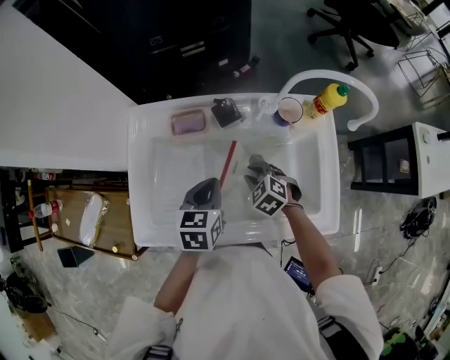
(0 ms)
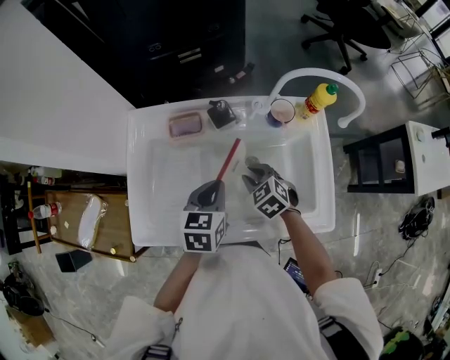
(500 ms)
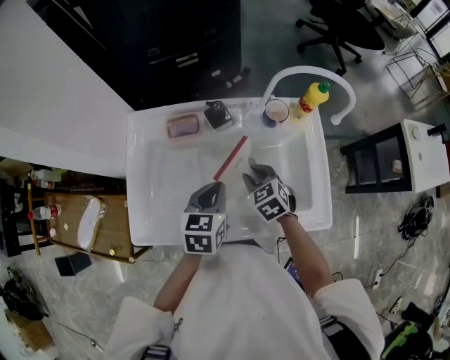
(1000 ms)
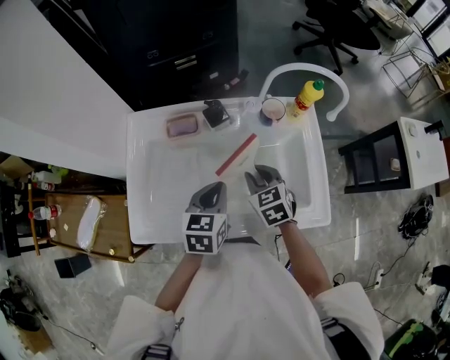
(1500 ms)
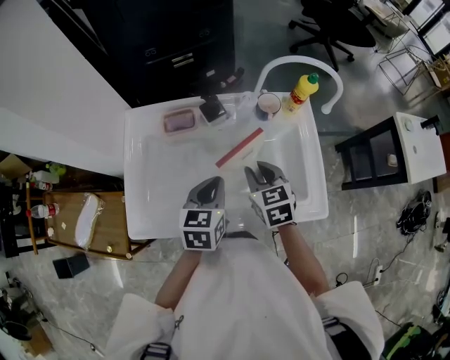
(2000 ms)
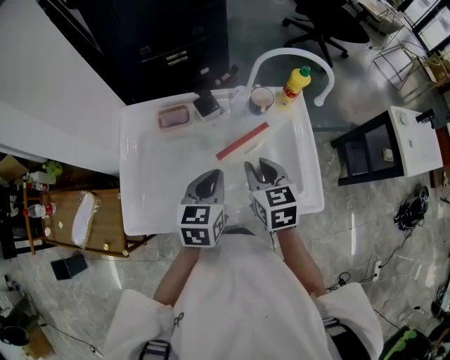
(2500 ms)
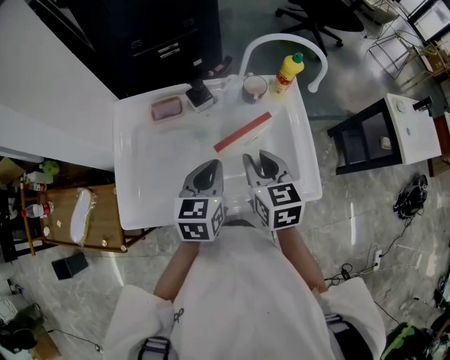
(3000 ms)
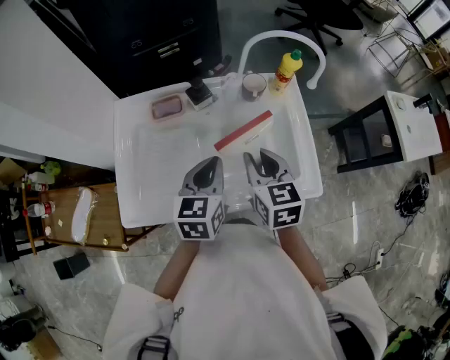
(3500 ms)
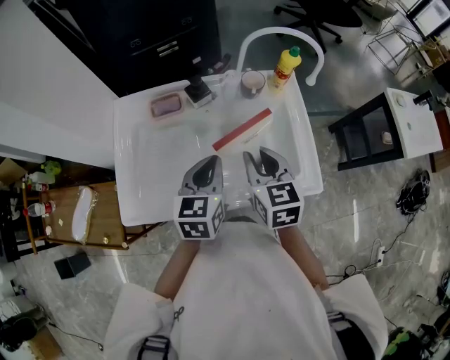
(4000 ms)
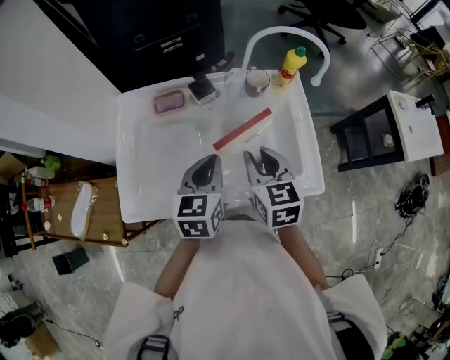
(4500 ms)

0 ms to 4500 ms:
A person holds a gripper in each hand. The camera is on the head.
0 ms to 2000 ms: The left gripper shifts by approximately 5 cm. Meanwhile the right gripper moves upward, some 15 cm, and changes its angle by approximately 40 degrees.
2000 ms to 4500 ms: The right gripper is displaced upward by approximately 5 cm.

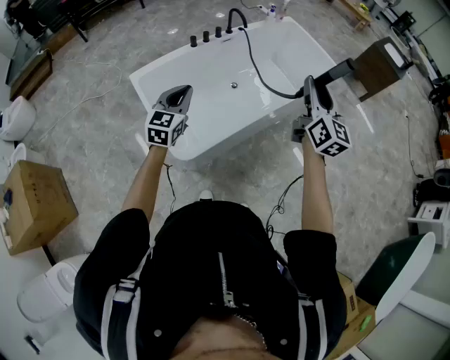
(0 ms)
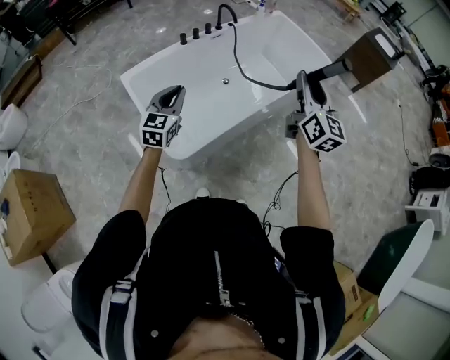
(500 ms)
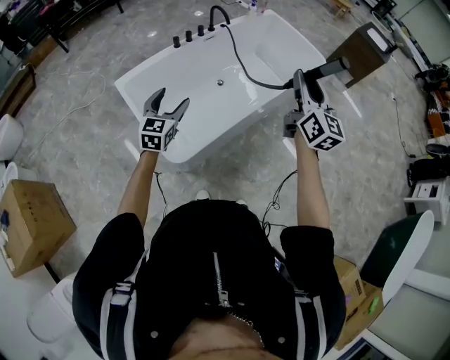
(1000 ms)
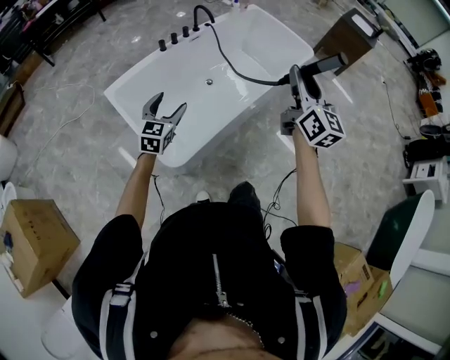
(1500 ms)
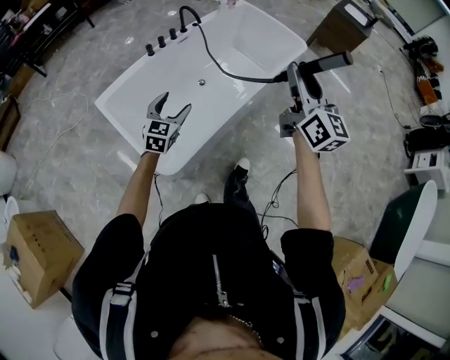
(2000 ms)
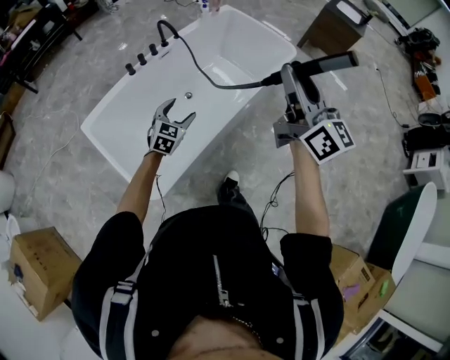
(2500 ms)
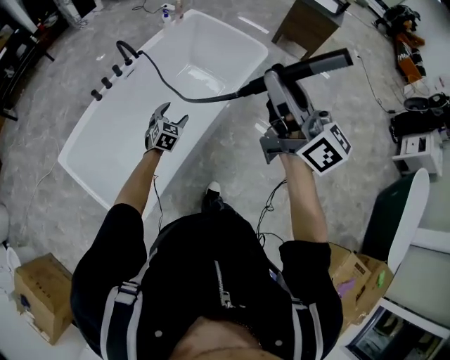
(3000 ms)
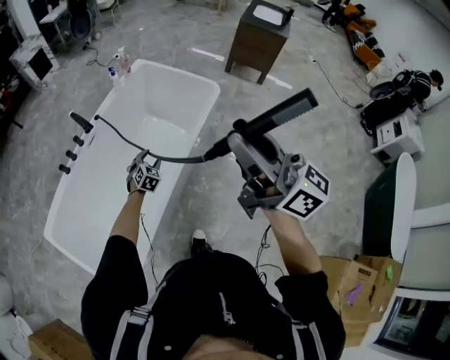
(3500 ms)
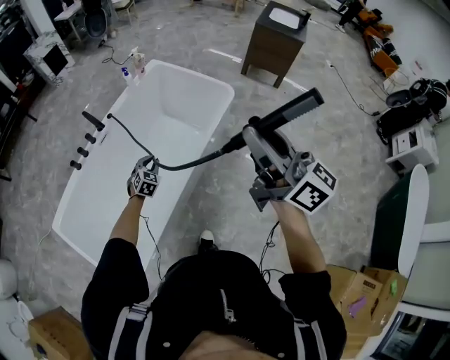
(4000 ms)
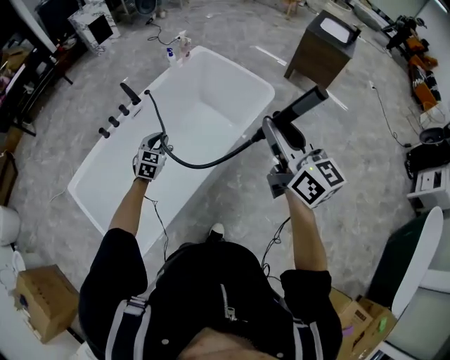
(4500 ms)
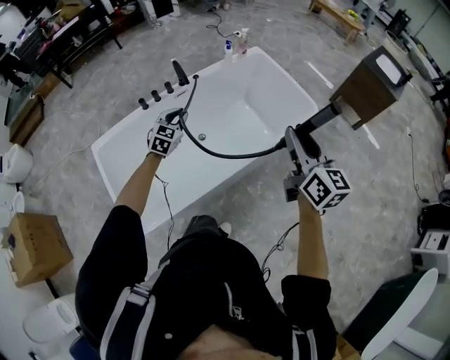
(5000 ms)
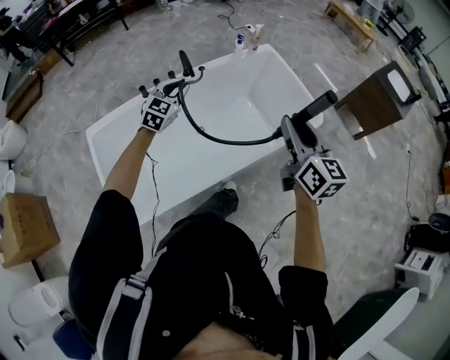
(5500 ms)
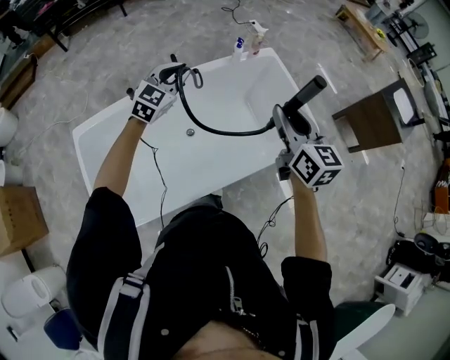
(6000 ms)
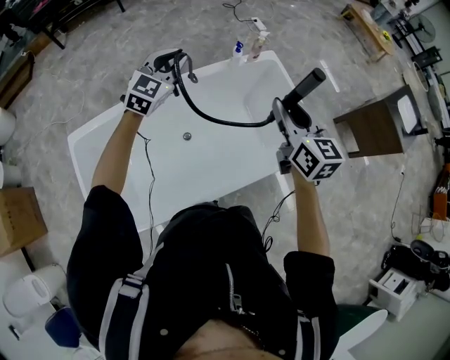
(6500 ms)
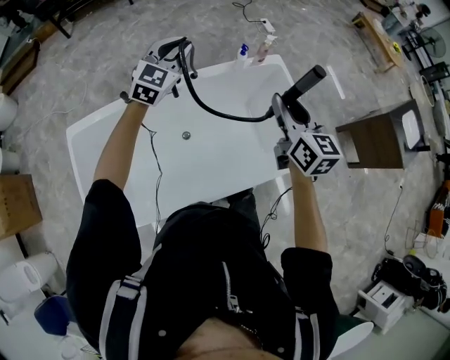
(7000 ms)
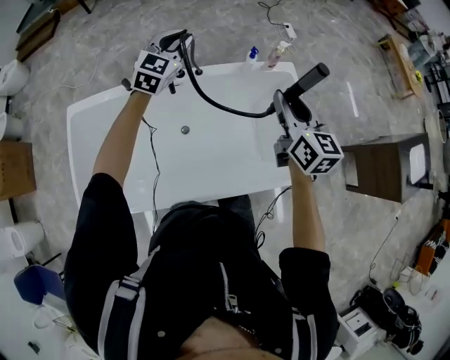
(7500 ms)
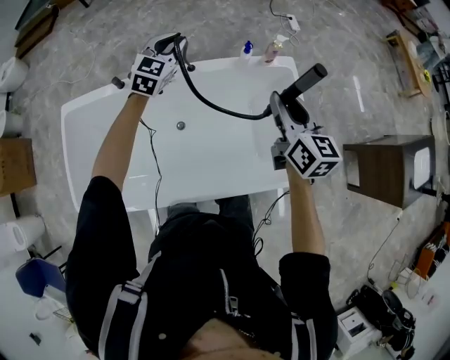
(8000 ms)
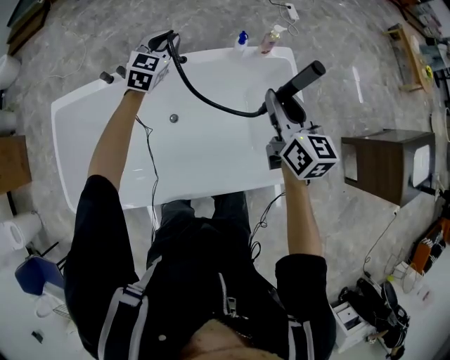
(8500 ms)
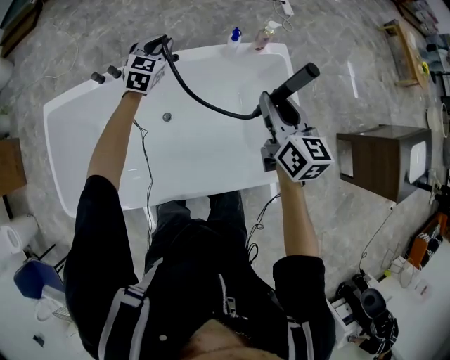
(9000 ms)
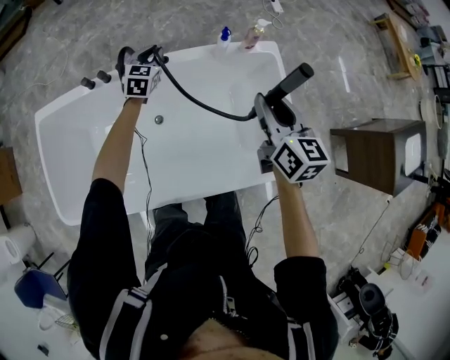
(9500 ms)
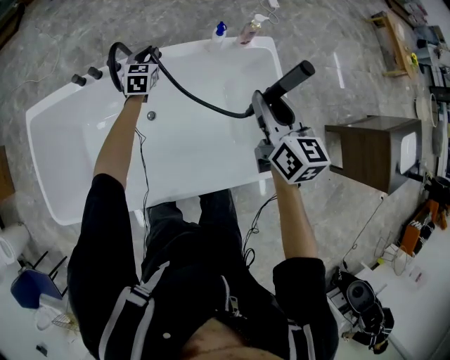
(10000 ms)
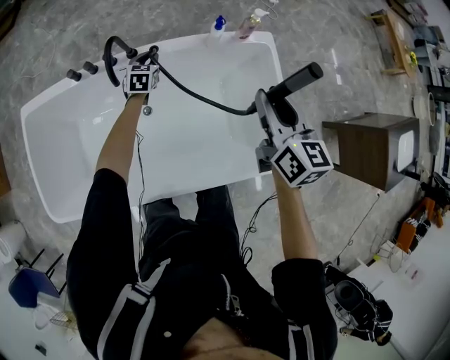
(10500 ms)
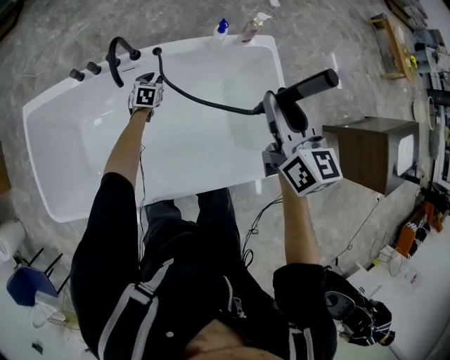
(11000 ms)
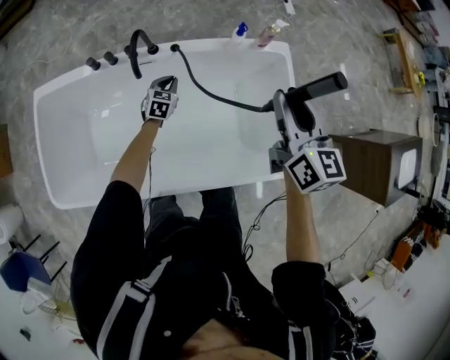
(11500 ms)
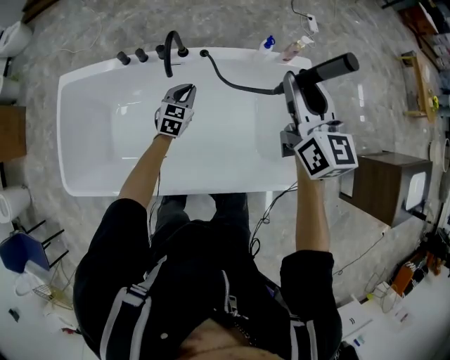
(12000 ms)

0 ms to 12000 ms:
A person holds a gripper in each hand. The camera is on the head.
0 ms to 2000 ms: The left gripper goes some 10 cm downward, forward and to the right, and opens its fingers.
2000 ms to 4000 ms: The right gripper heads to the right and forward, covering roughly 30 cm, and turns by about 20 degrees, while the left gripper shifts about 50 cm forward, to the right and downward, swivels about 30 degrees, and closes its fingers.
4000 ms to 6000 ms: The right gripper shifts some 35 cm forward and downward, and swivels approximately 40 degrees. Meanwhile the left gripper goes some 35 cm upward, forward and to the left, and changes its angle by some 30 degrees.
6000 ms to 8000 ms: The two grippers go roughly 25 cm forward. The left gripper swivels about 20 degrees.
8000 ms to 10000 ms: The right gripper goes roughly 5 cm downward; the left gripper is displaced downward by about 25 cm, and rotates approximately 20 degrees.
10000 ms to 12000 ms: The right gripper goes some 10 cm upward and to the left, while the left gripper is displaced backward by roughly 15 cm.

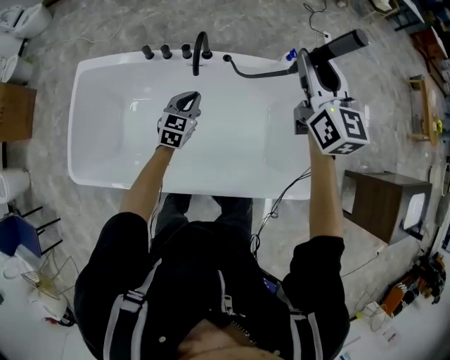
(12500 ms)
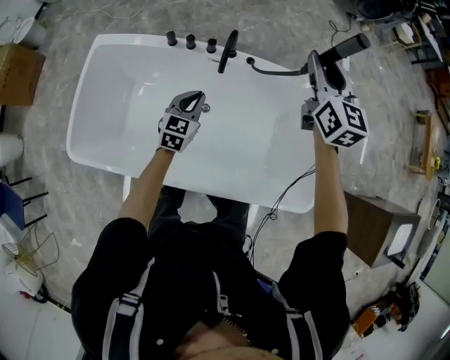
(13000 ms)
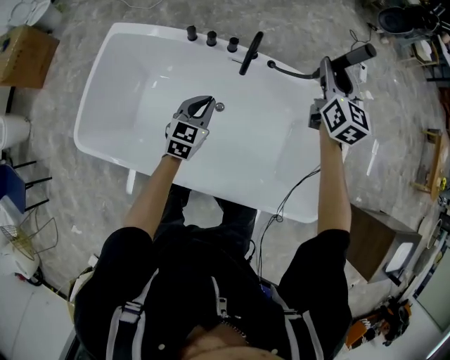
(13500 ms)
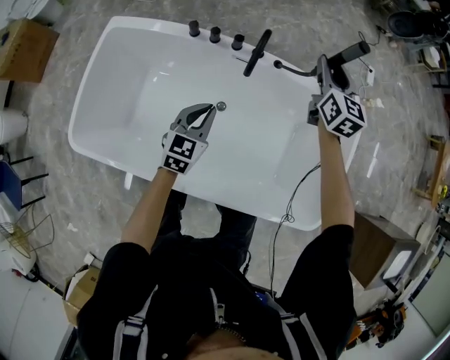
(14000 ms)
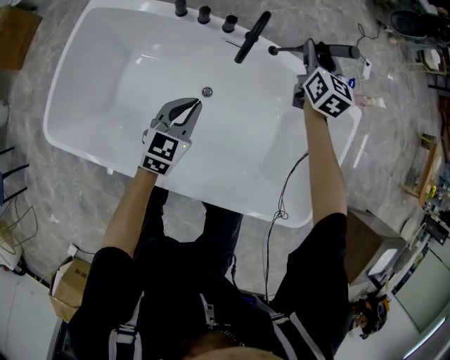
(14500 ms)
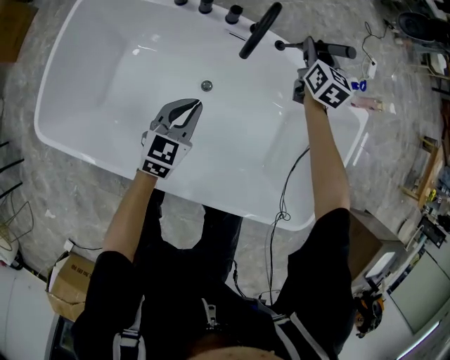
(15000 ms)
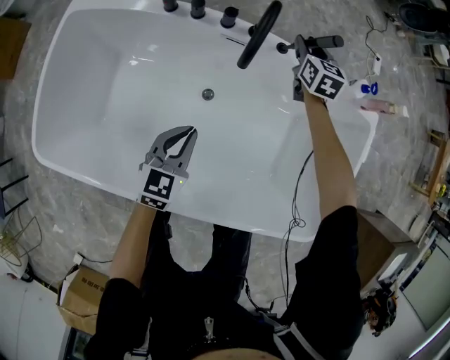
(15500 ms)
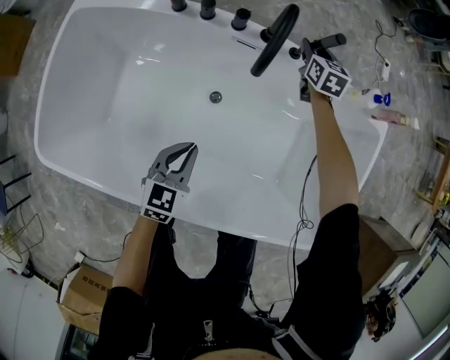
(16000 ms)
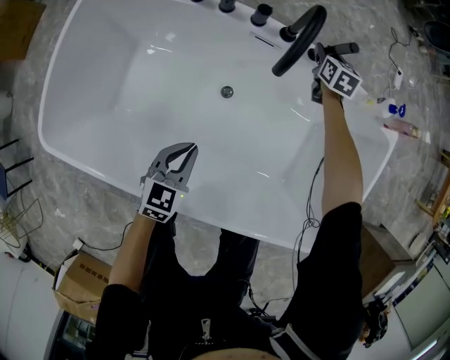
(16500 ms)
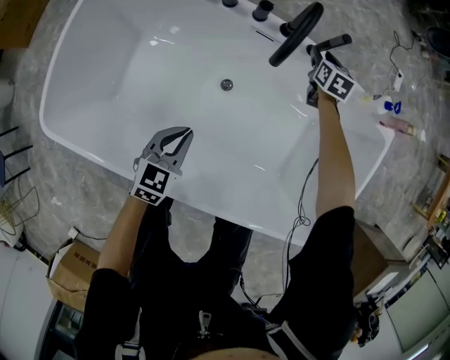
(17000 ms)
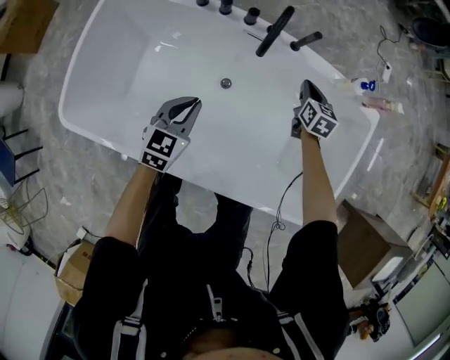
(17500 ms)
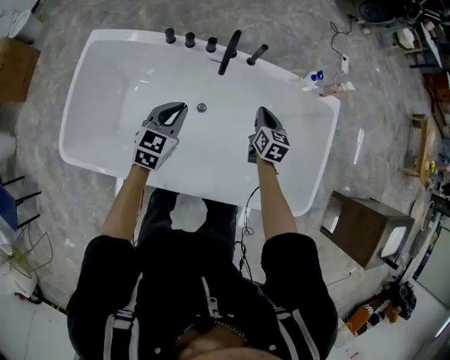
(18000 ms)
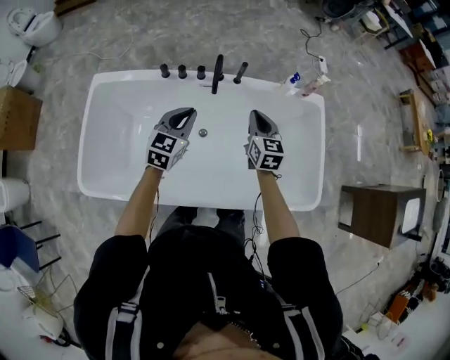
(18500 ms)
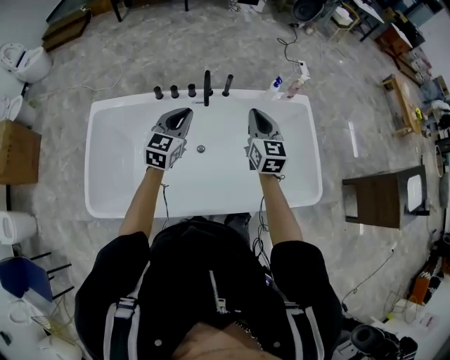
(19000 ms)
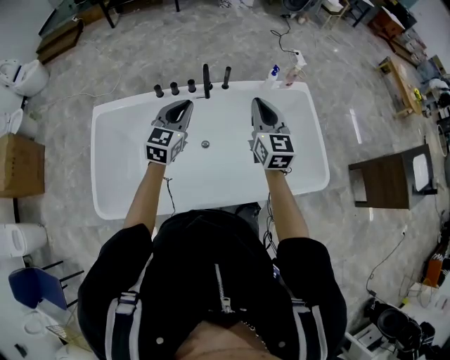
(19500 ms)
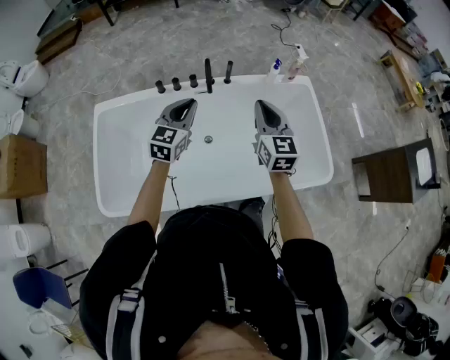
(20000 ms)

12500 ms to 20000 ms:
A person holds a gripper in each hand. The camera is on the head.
12500 ms to 14500 ms: The left gripper heads to the left and downward, covering about 10 cm. The right gripper travels downward and forward by approximately 30 cm.
14500 ms to 16500 ms: The left gripper goes about 15 cm downward and backward. The right gripper is displaced downward by about 25 cm.
16500 ms to 18000 ms: The left gripper shifts about 20 cm upward. Meanwhile the right gripper heads backward and upward, covering about 35 cm, and closes.
18000 ms to 20000 ms: The left gripper goes about 15 cm upward, and rotates approximately 20 degrees, while the right gripper moves upward and backward, some 30 cm, and rotates some 30 degrees.

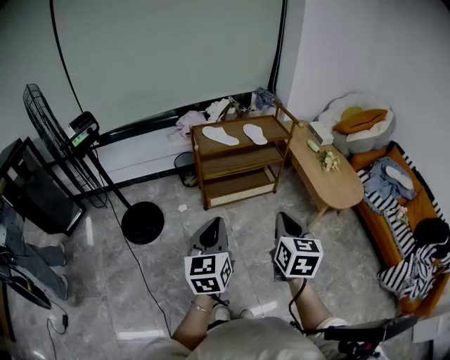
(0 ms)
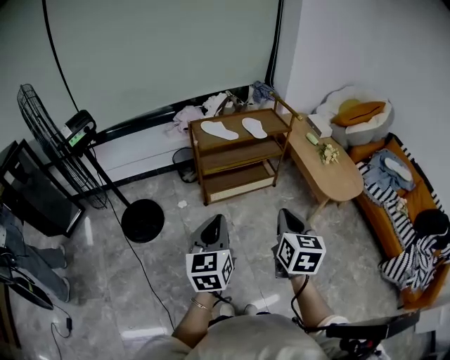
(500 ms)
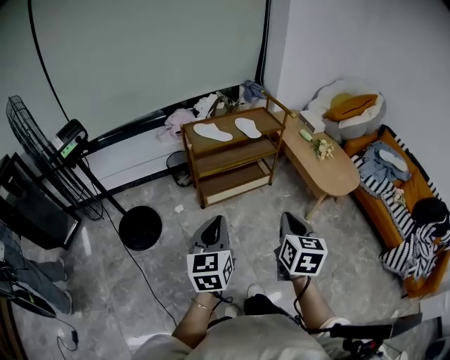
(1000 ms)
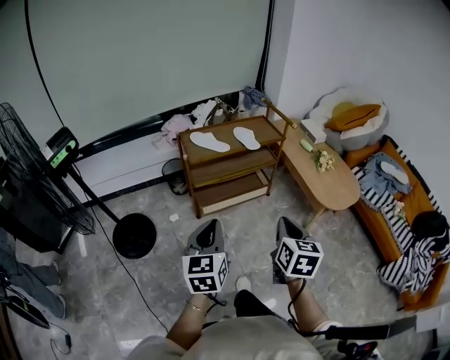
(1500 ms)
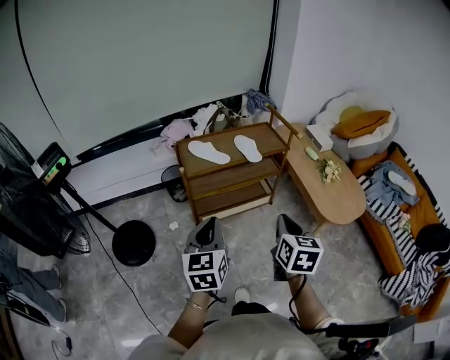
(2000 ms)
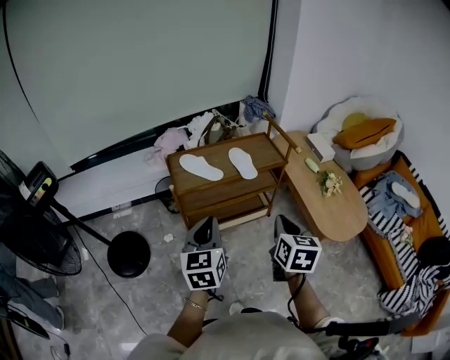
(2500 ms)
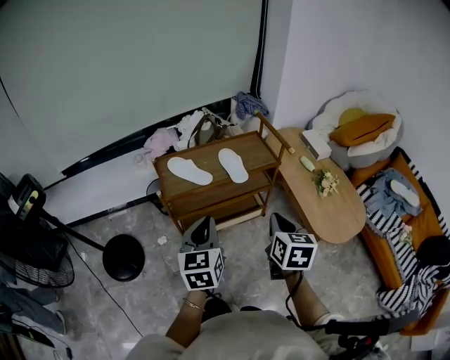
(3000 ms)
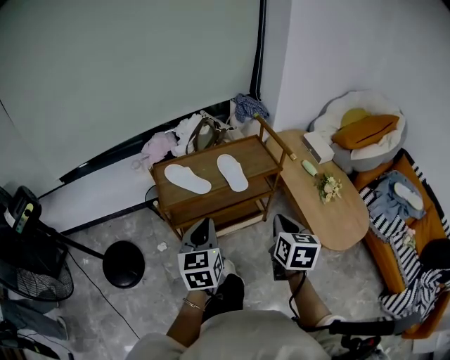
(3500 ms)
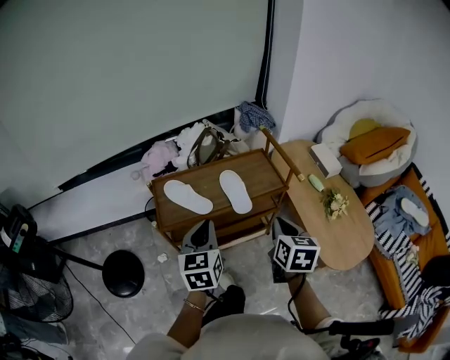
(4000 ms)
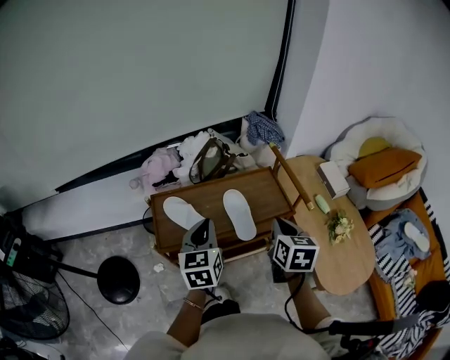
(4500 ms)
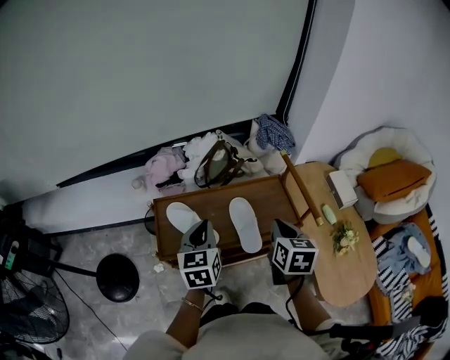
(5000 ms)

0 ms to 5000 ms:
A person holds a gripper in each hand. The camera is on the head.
0 ms to 2500 ms: The two grippers go roughly 30 cm forward.
2500 ms to 5000 ms: The grippers both shift forward by roughly 35 cm.
